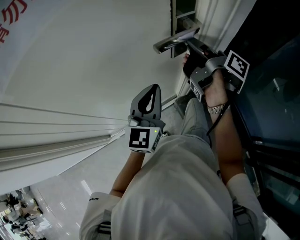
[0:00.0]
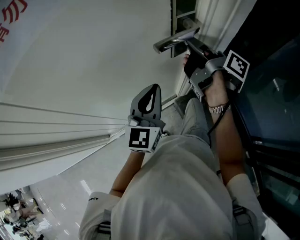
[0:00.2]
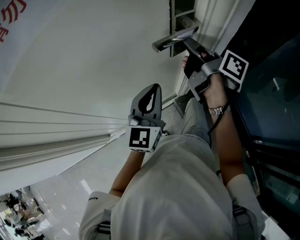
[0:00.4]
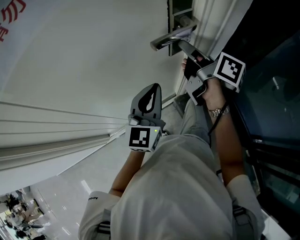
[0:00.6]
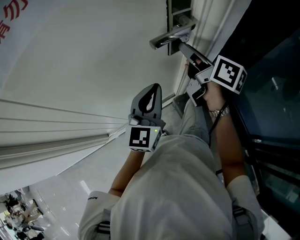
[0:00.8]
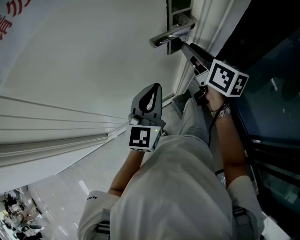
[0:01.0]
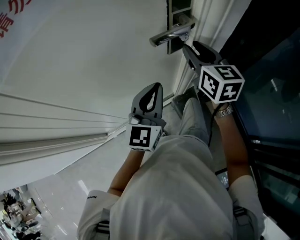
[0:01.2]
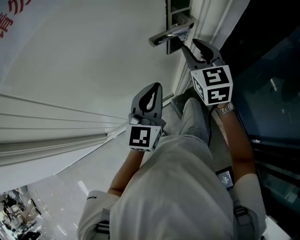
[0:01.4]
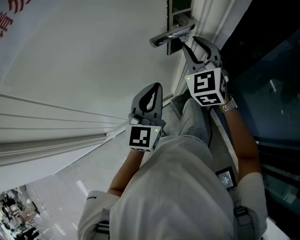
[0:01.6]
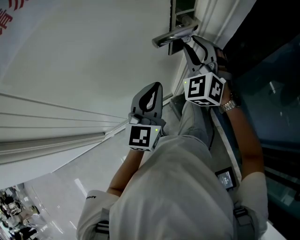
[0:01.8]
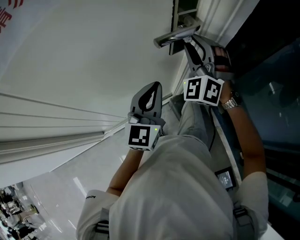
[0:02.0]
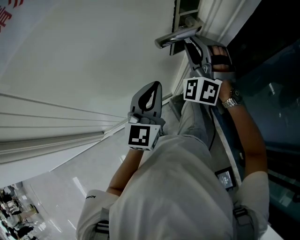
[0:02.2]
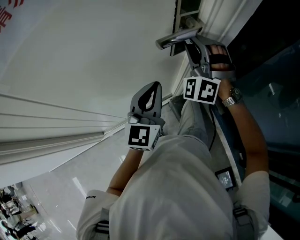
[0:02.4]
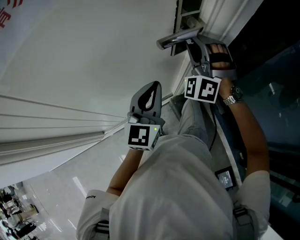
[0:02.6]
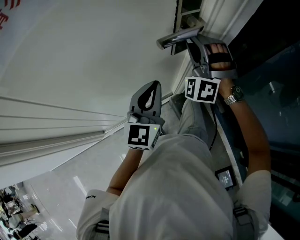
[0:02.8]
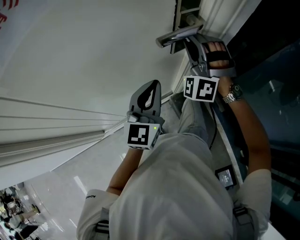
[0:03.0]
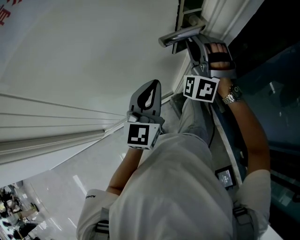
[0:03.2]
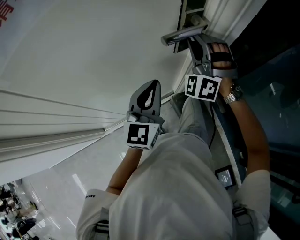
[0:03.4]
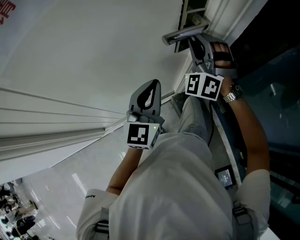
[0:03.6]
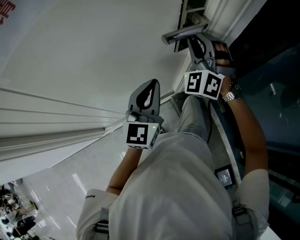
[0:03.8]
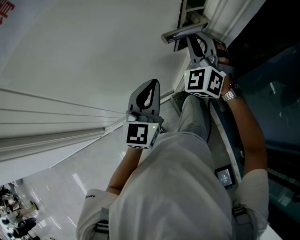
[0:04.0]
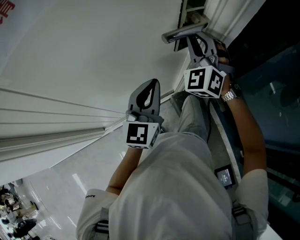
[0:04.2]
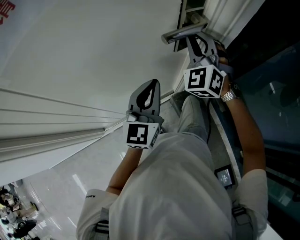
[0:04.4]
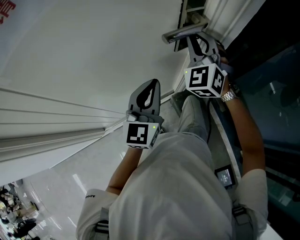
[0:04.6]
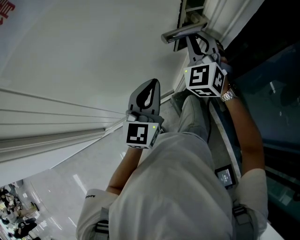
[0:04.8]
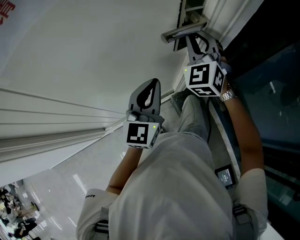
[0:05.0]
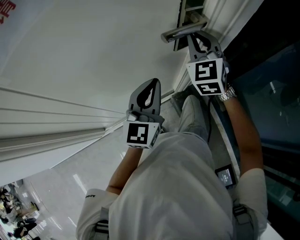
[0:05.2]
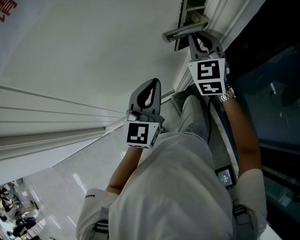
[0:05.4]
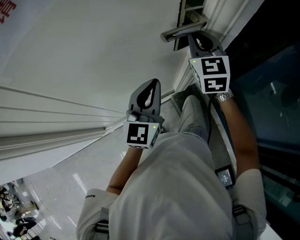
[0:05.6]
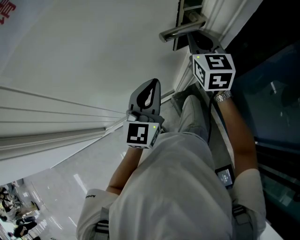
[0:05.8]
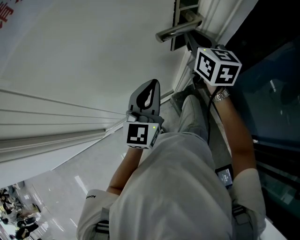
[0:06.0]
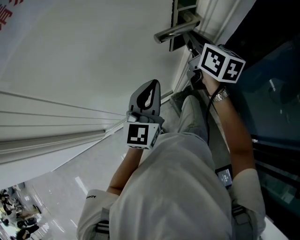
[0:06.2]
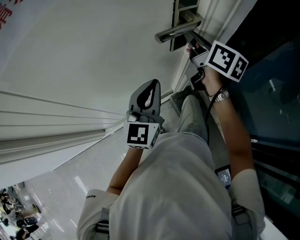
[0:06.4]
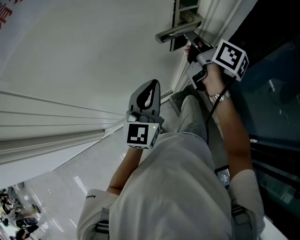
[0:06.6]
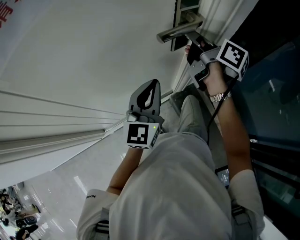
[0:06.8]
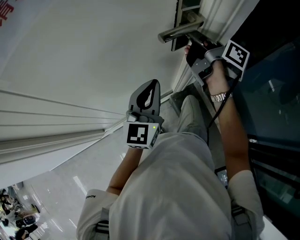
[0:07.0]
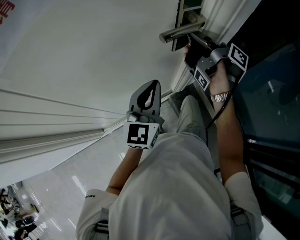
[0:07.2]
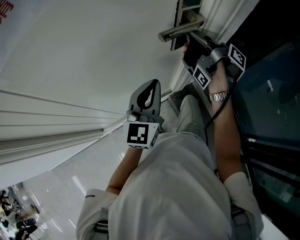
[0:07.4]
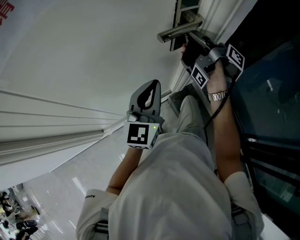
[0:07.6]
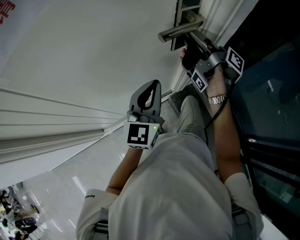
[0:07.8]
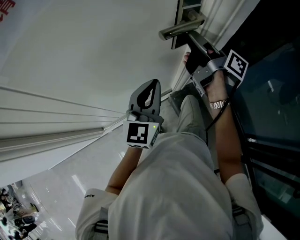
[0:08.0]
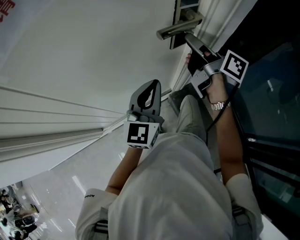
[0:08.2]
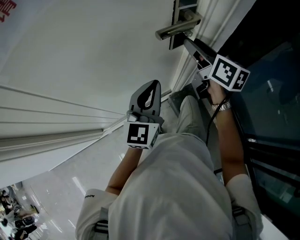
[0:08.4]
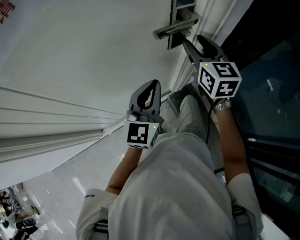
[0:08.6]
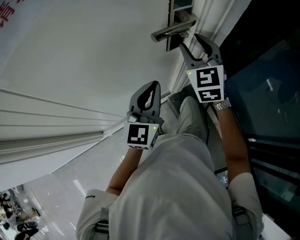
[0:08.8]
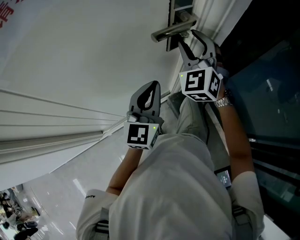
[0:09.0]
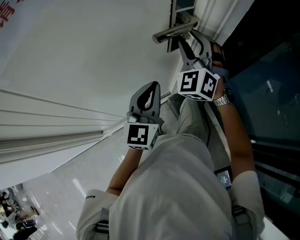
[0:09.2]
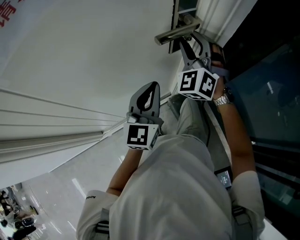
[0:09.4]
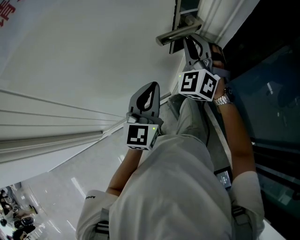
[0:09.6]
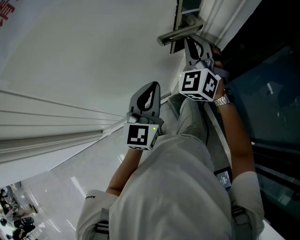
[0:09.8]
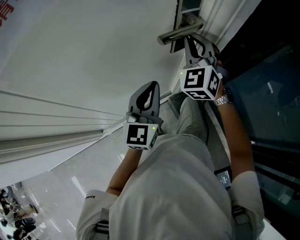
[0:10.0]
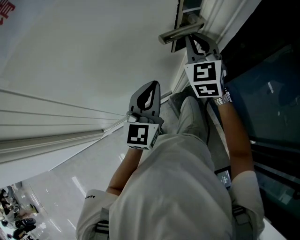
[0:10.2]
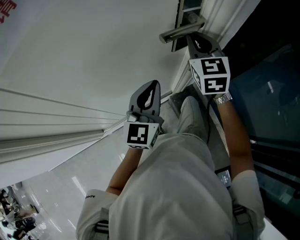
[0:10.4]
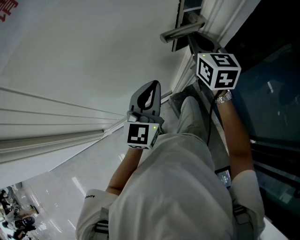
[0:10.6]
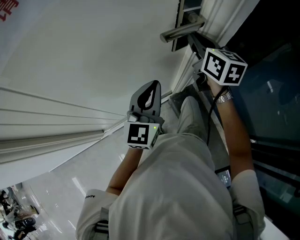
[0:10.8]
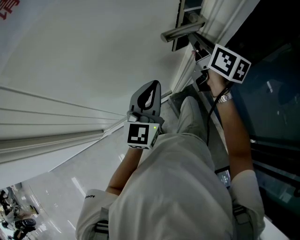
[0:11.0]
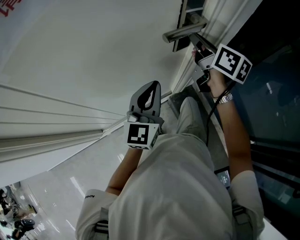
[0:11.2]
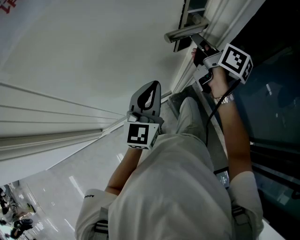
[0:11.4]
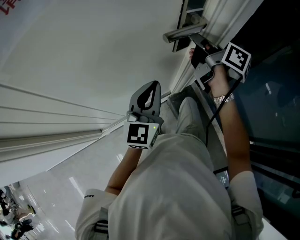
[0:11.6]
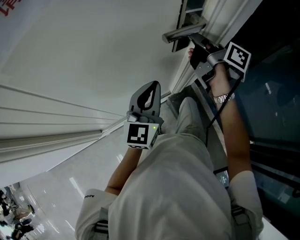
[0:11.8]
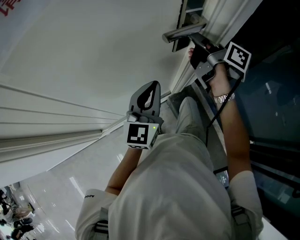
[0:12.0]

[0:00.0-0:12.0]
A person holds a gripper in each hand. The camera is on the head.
0:00.0 to 0:01.6: The right gripper rotates around the line of its fingers by some 120 degrees, counterclockwise from behind, and opens.
0:01.6 to 0:03.0: The right gripper rotates around the line of its fingers by some 50 degrees, counterclockwise from behind.
0:03.0 to 0:04.4: The right gripper swivels about 30 degrees.
0:04.4 to 0:06.0: The right gripper twists some 60 degrees clockwise, seen from behind.
0:06.0 to 0:07.6: The right gripper rolls clockwise, seen from behind, by some 90 degrees.
0:07.6 to 0:09.0: The right gripper rolls counterclockwise, seen from behind, by some 140 degrees, and opens.
0:09.0 to 0:10.4: The right gripper swivels approximately 30 degrees, and closes up.
0:10.4 to 0:12.0: The right gripper twists about 80 degrees clockwise, seen from behind.

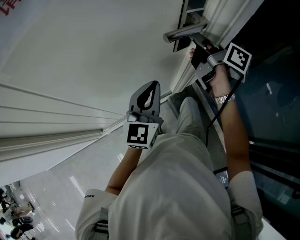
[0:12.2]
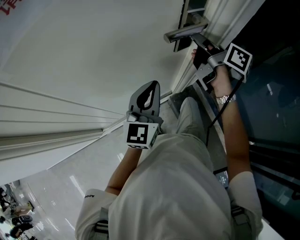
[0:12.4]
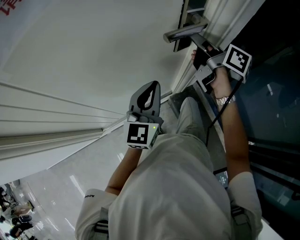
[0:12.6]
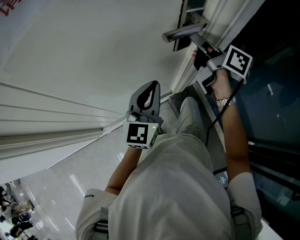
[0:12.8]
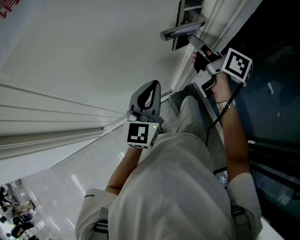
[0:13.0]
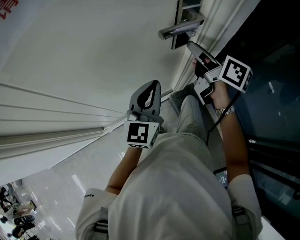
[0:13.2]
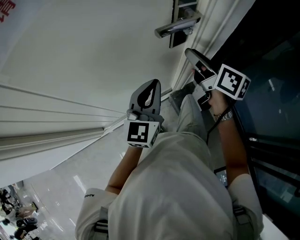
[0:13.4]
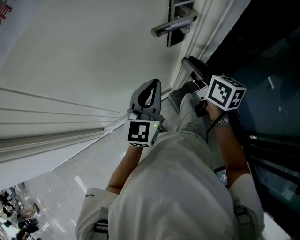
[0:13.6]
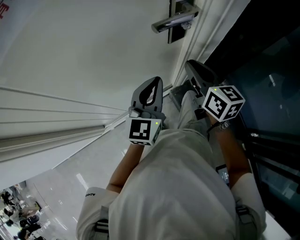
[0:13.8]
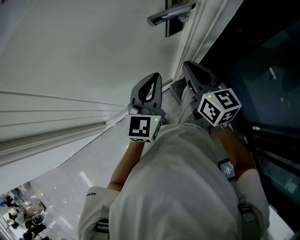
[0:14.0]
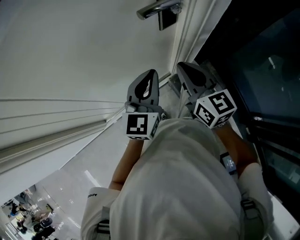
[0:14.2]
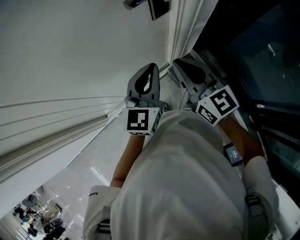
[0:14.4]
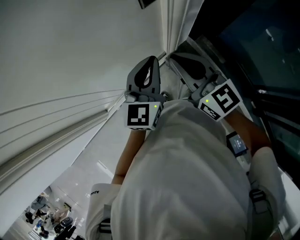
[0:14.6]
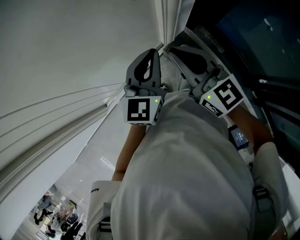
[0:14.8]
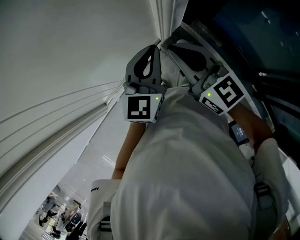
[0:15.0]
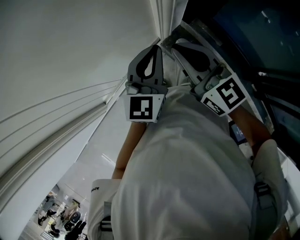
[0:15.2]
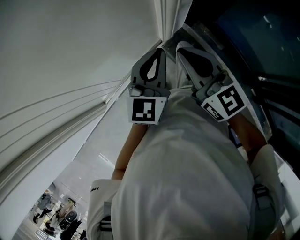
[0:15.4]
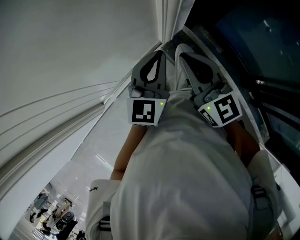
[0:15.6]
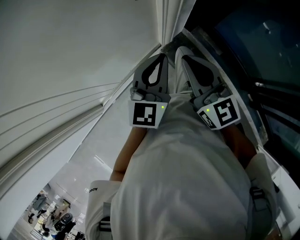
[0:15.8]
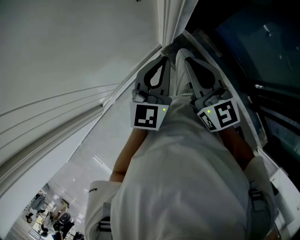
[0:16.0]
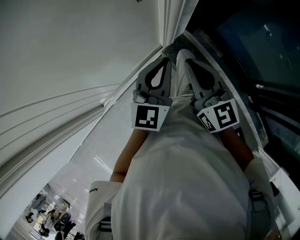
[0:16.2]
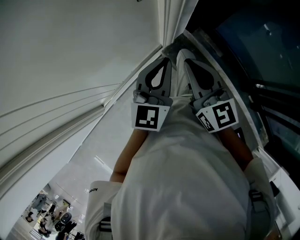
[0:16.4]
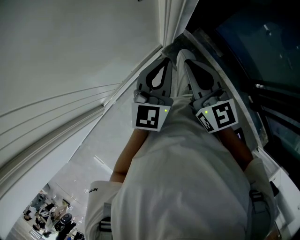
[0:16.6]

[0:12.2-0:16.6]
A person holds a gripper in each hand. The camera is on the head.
0:12.2 to 0:13.6: The right gripper goes some 10 cm backward, swivels about 30 degrees, and opens its fingers.
0:13.6 to 0:15.2: The left gripper is displaced to the right by approximately 5 cm, while the right gripper goes roughly 15 cm backward, changes its angle by approximately 30 degrees, and closes.
0:15.2 to 0:16.6: The grippers move only a little.

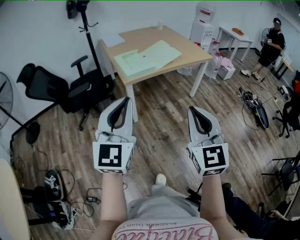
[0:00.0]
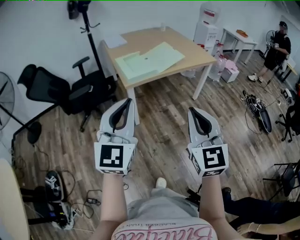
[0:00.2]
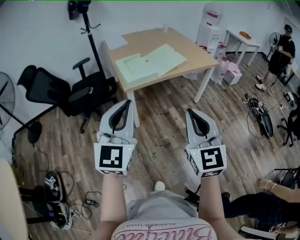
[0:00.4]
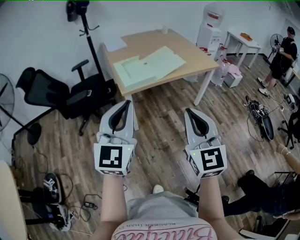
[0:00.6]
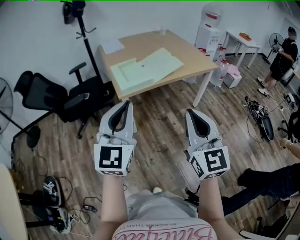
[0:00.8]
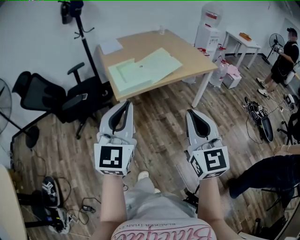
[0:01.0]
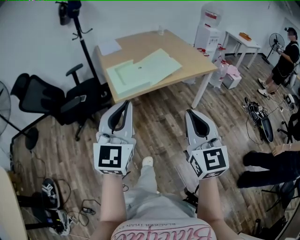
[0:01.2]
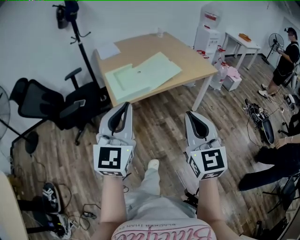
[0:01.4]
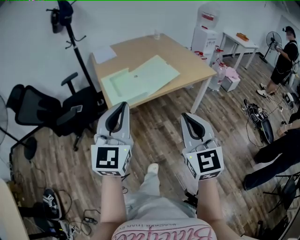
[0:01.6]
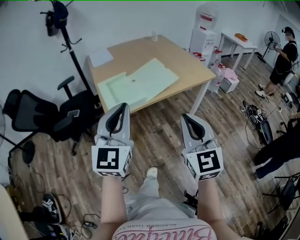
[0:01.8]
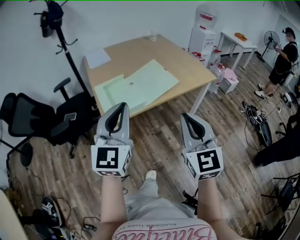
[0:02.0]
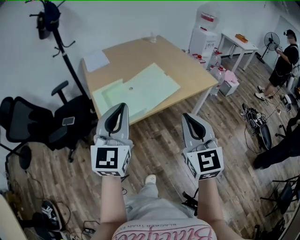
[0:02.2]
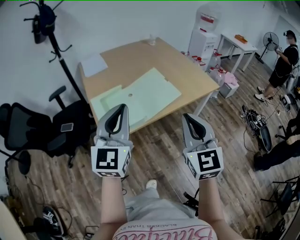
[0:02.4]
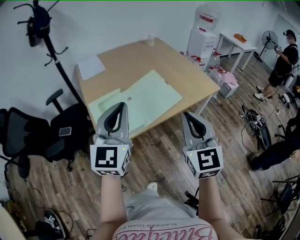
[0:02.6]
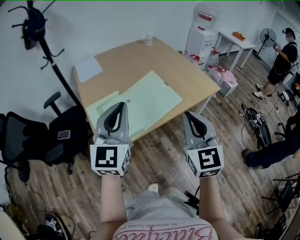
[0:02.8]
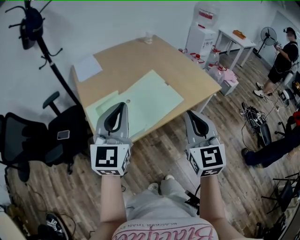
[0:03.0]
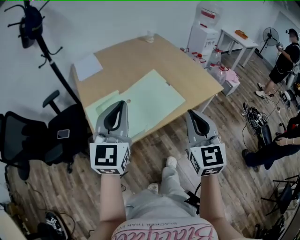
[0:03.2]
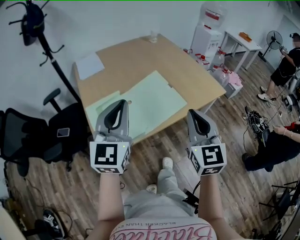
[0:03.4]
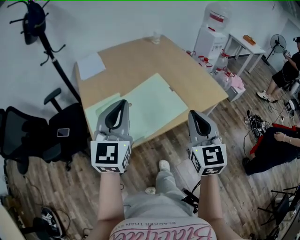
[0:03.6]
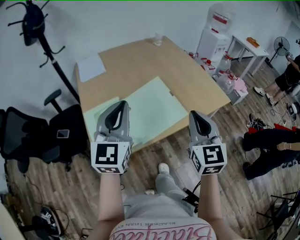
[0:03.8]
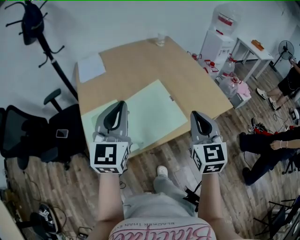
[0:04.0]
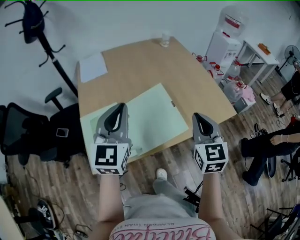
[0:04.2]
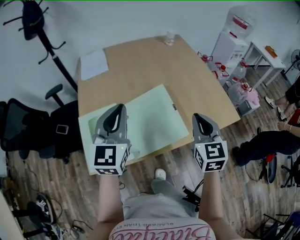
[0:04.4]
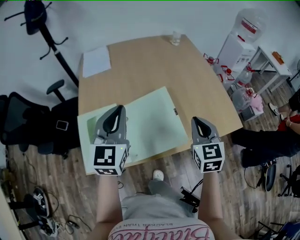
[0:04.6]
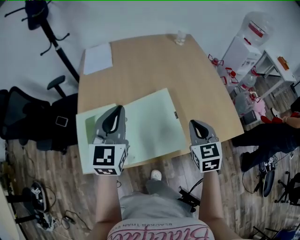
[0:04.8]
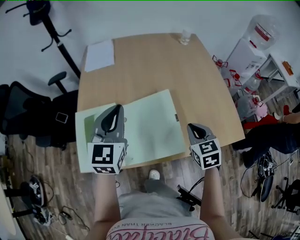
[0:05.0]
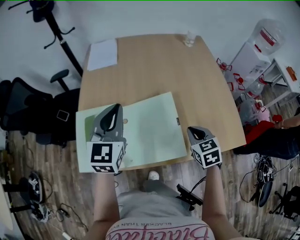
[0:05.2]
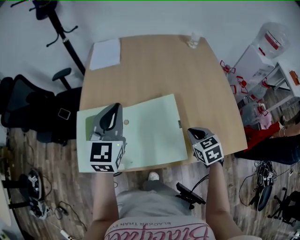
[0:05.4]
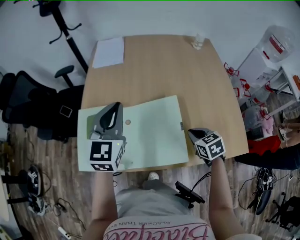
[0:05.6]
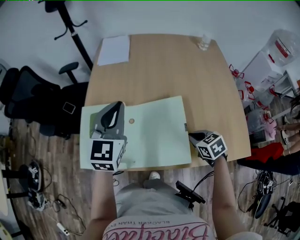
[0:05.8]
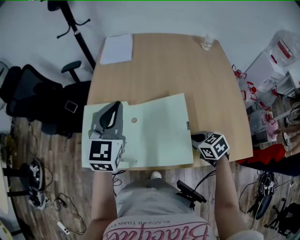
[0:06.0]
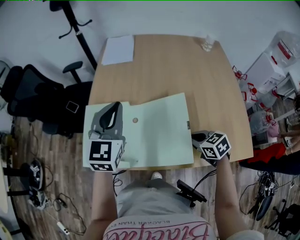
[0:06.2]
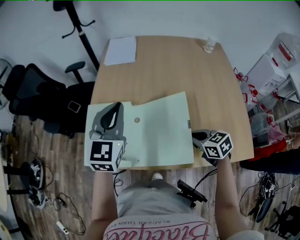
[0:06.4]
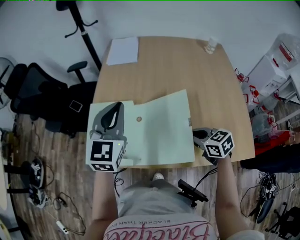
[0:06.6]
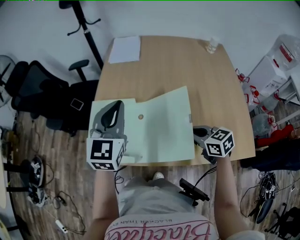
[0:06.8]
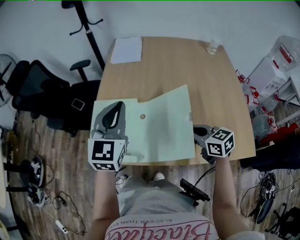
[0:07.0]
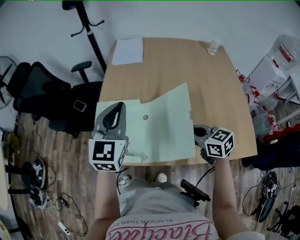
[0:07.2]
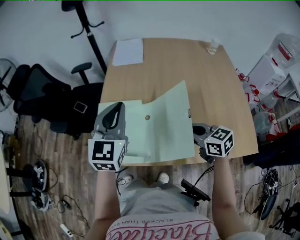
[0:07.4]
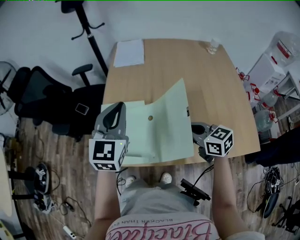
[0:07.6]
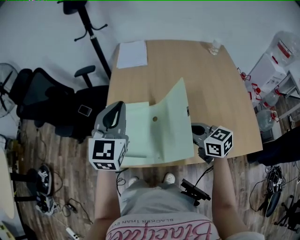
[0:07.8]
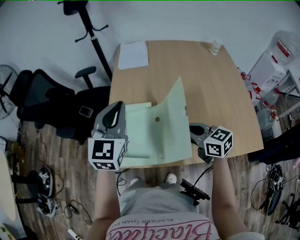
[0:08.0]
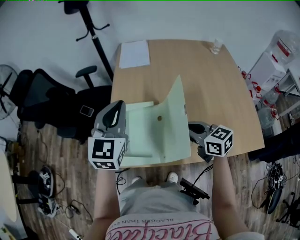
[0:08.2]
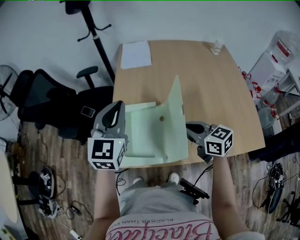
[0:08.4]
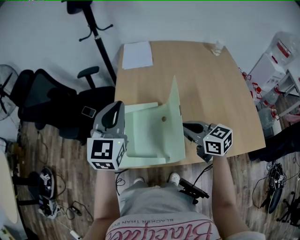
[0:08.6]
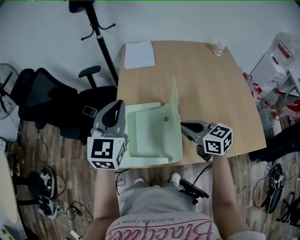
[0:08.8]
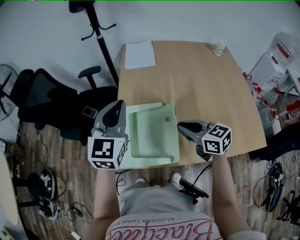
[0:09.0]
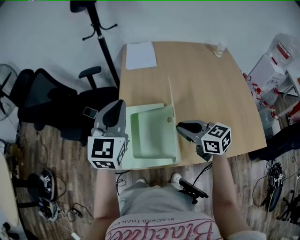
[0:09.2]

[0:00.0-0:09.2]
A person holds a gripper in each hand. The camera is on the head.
0:00.0 to 0:01.6: Both grippers travel together forward, some 20 cm.
0:01.6 to 0:03.0: Both grippers move forward, approximately 25 cm.
0:03.0 to 0:04.6: The grippers both shift forward by about 20 cm.
0:04.6 to 0:06.2: The right gripper heads downward, covering roughly 15 cm, and turns by some 60 degrees. Meanwhile the left gripper moves approximately 5 cm.
0:06.2 to 0:07.6: The left gripper shifts roughly 5 cm to the left, while the right gripper shifts approximately 15 cm to the left and upward, and rotates approximately 20 degrees.
0:07.6 to 0:09.2: Both grippers travel together to the left, approximately 10 cm.
